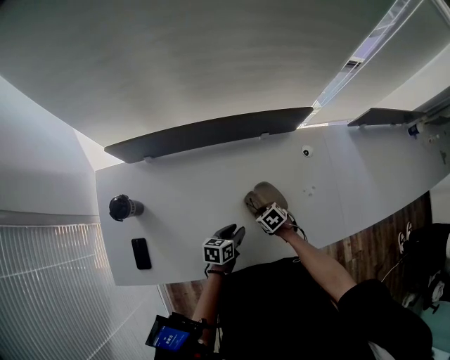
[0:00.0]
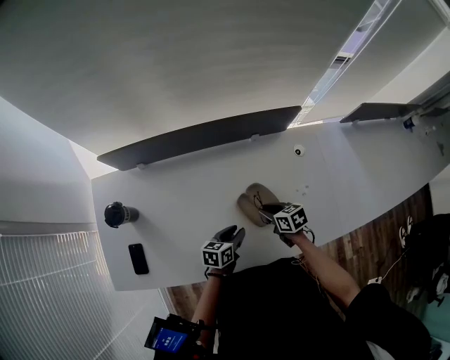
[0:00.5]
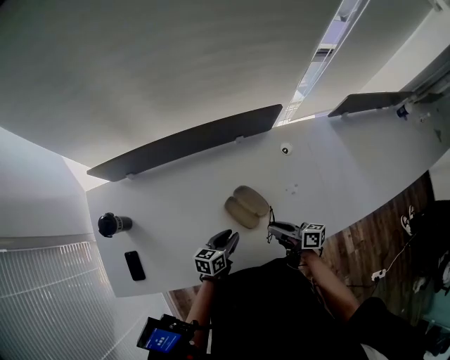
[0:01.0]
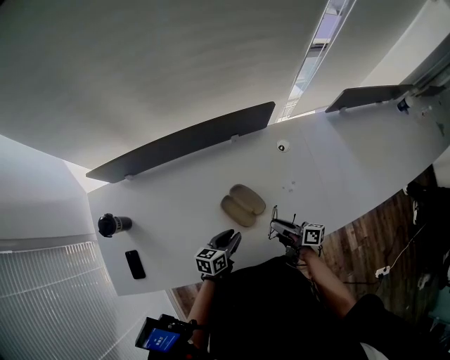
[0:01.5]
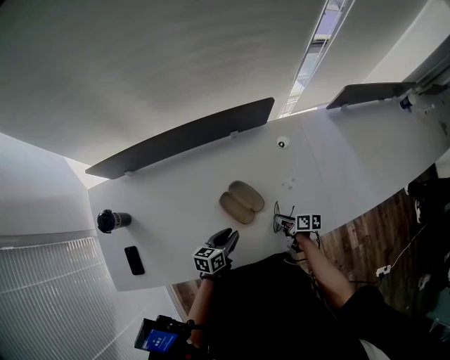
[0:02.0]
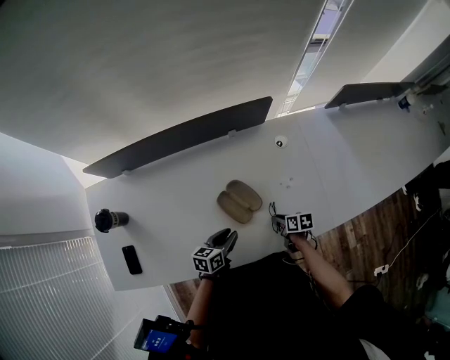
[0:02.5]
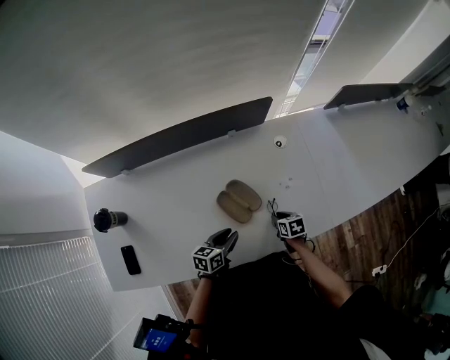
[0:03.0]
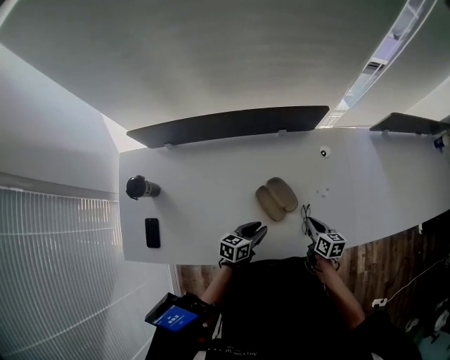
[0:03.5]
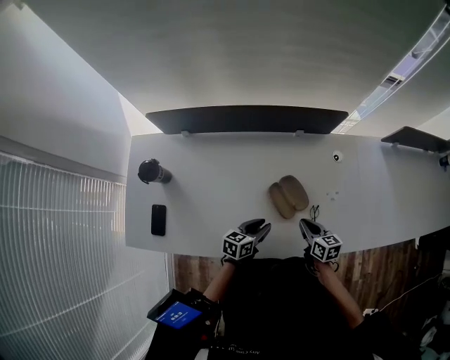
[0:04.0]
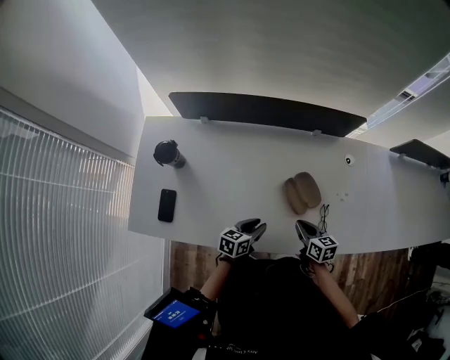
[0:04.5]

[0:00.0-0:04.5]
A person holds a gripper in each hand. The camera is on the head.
0:00.0 to 0:02.0: The left gripper moves to the right, about 5 cm. Meanwhile the right gripper goes about 20 cm to the right, and twists some 60 degrees clockwise, seen from behind.
0:02.0 to 0:04.5: The right gripper shifts approximately 20 cm to the left and upward, and twists some 40 degrees counterclockwise, seen from behind; the left gripper is displaced to the left and backward by roughly 10 cm.

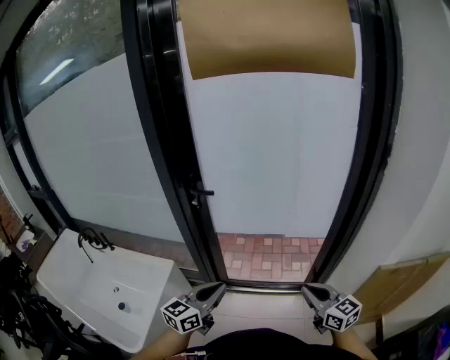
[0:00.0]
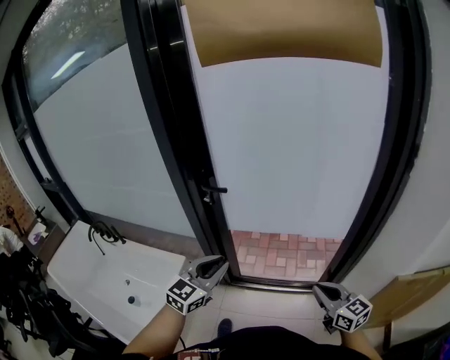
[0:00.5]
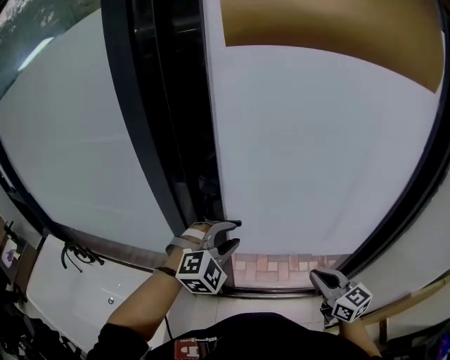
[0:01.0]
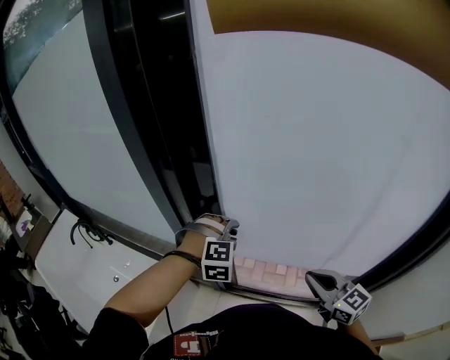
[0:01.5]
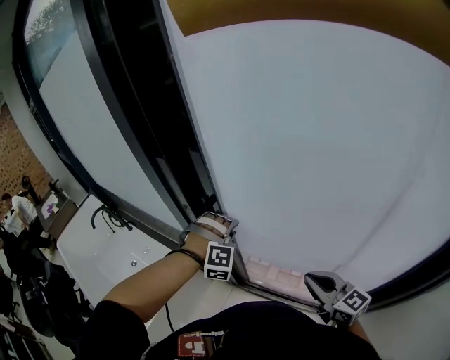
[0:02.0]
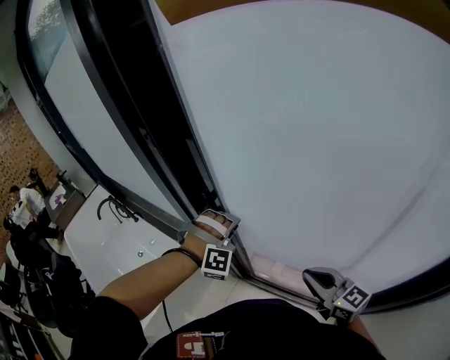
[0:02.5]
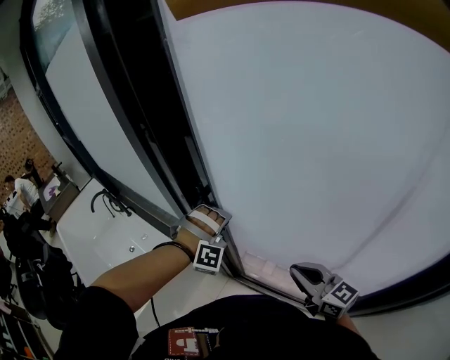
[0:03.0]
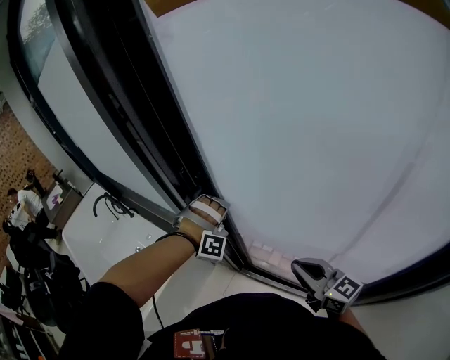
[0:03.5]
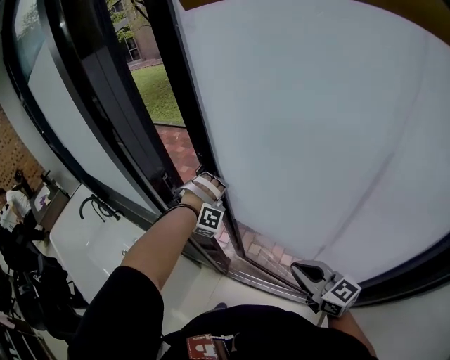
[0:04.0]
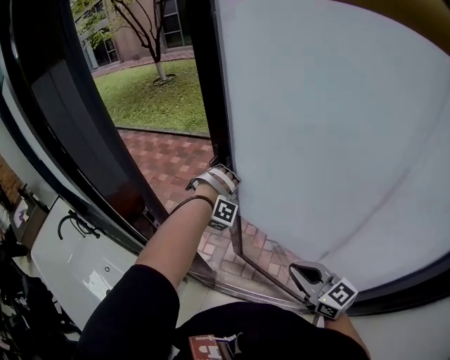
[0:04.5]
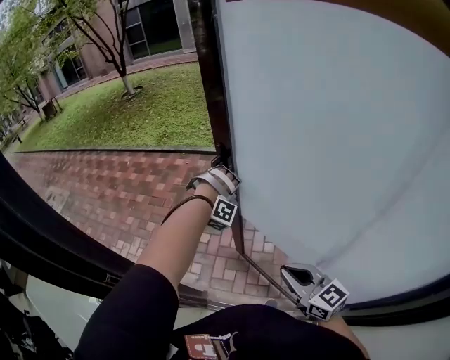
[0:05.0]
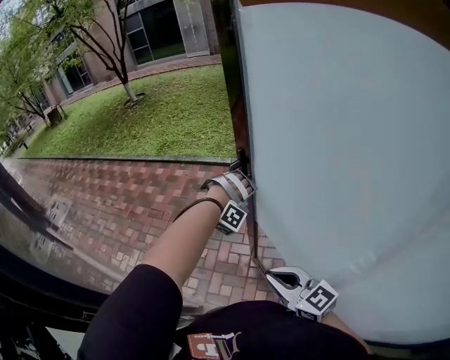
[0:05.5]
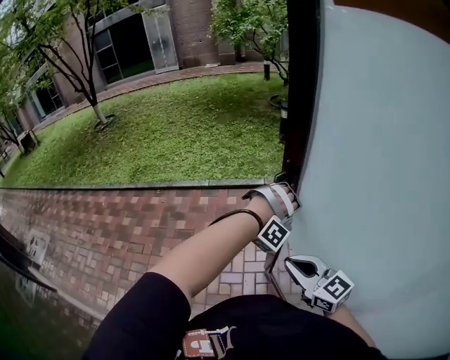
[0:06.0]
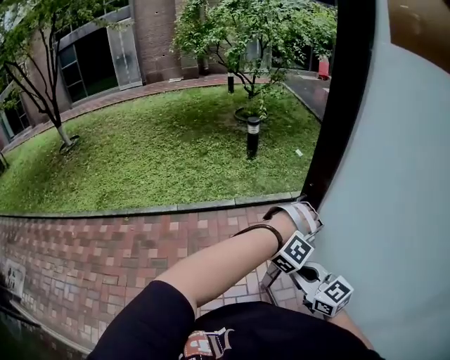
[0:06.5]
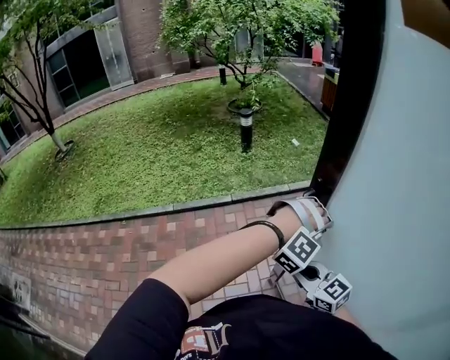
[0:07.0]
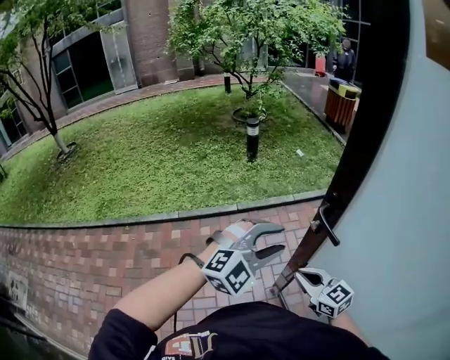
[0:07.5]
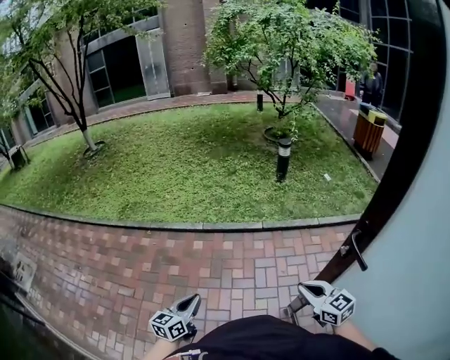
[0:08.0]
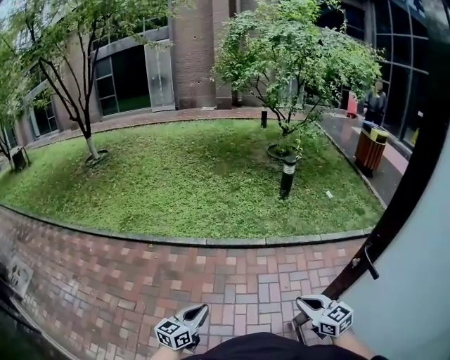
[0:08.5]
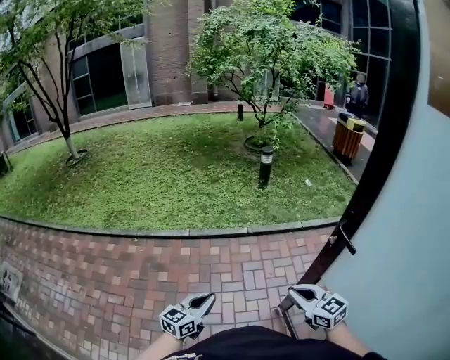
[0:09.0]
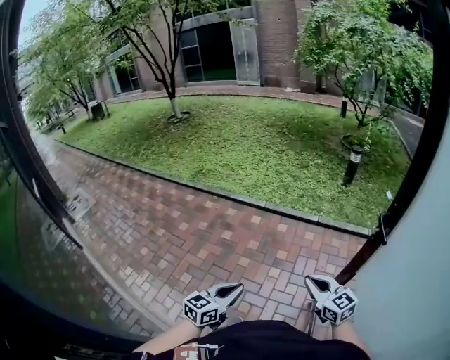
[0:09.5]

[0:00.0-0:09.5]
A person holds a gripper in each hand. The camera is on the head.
0:00.0 to 0:02.0: The left gripper ends up approximately 40 cm from where it was, rolls clockwise, seen from behind, by about 90 degrees, and opens its fingers. Meanwhile the right gripper moves roughly 30 cm, and turns by approximately 20 degrees.
0:02.0 to 0:04.0: The left gripper goes roughly 15 cm forward and to the right, and swivels about 20 degrees.
0:04.0 to 0:05.5: The left gripper is displaced to the right and forward by about 40 cm, and changes its angle by some 30 degrees; the right gripper shifts approximately 30 cm forward and to the right.
0:05.5 to 0:07.5: The left gripper changes its angle by approximately 70 degrees, and closes and opens again; the right gripper ends up roughly 40 cm from where it was, and turns by roughly 30 degrees.
0:07.5 to 0:09.5: The right gripper moves some 15 cm, and changes its angle by approximately 30 degrees. The left gripper shifts by roughly 35 cm, twists about 70 degrees counterclockwise, seen from behind, and closes its fingers.

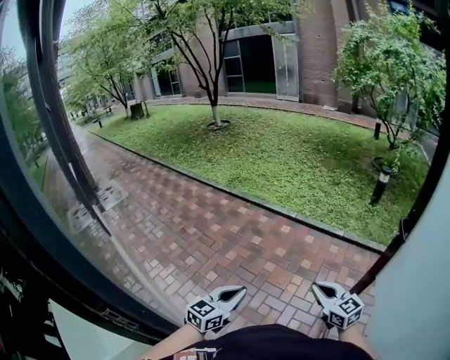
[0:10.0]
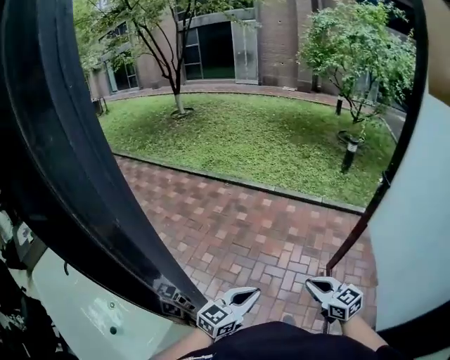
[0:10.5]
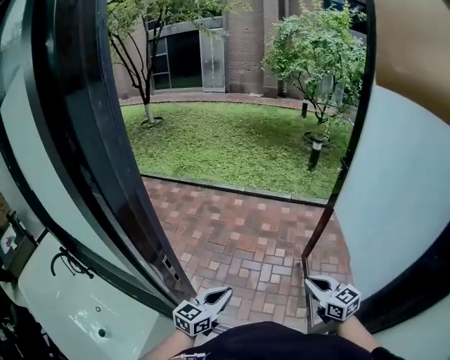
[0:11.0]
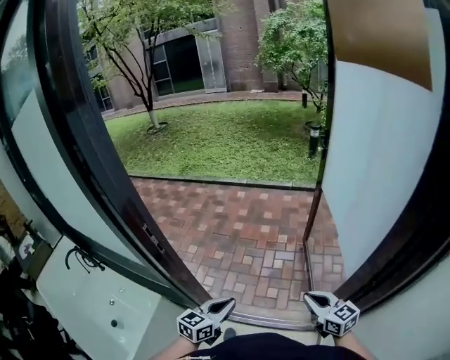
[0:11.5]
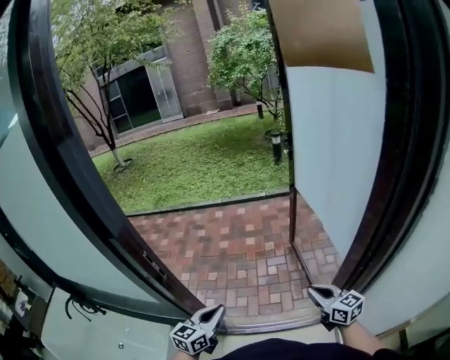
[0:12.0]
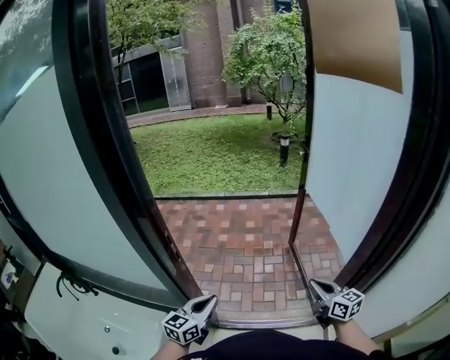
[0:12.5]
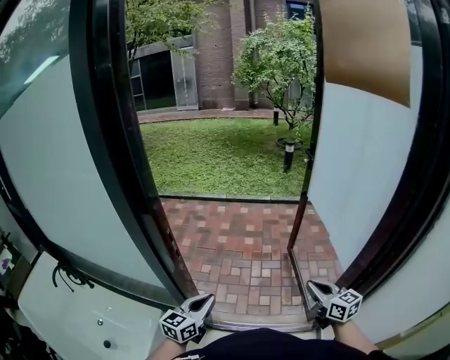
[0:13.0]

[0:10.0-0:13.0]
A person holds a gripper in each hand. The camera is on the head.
0:10.0 to 0:11.5: The two grippers travel together, backward, some 50 cm.
0:11.5 to 0:13.0: The right gripper shifts approximately 5 cm to the left; the left gripper moves to the left, some 15 cm.

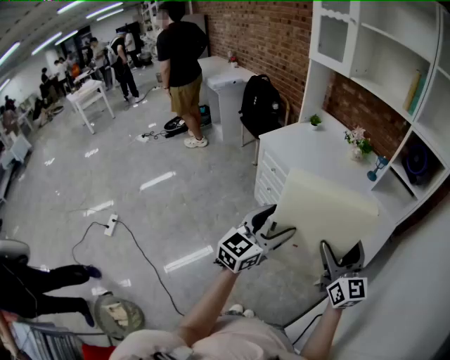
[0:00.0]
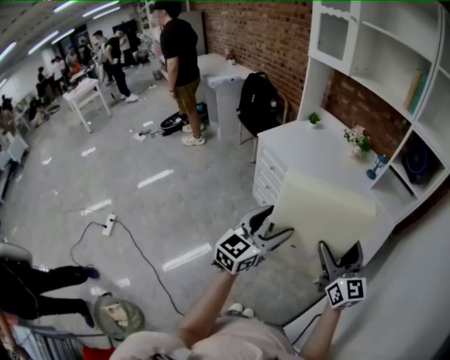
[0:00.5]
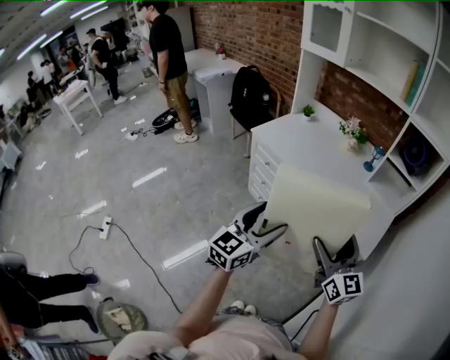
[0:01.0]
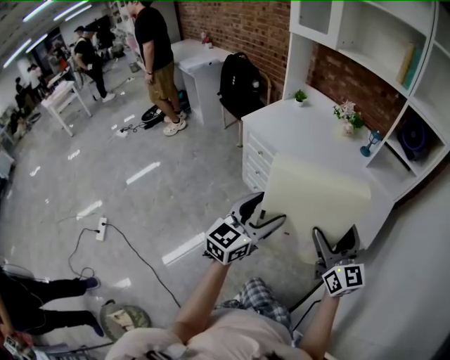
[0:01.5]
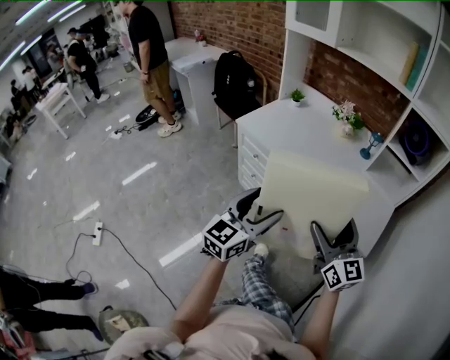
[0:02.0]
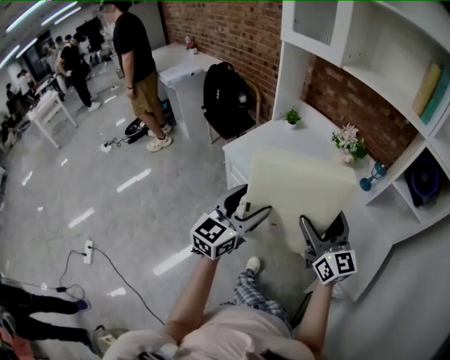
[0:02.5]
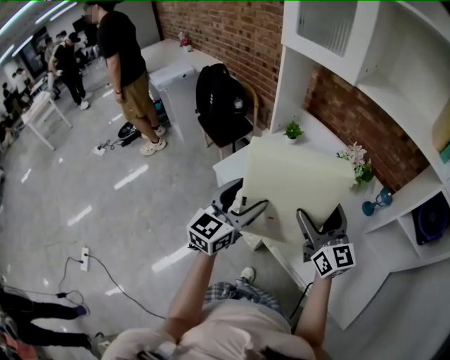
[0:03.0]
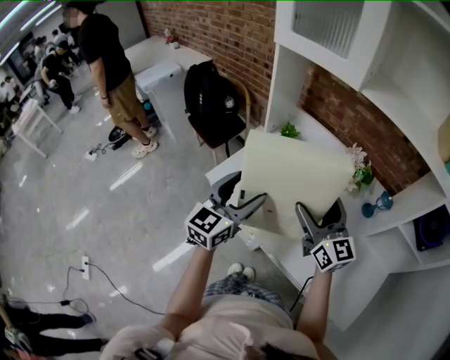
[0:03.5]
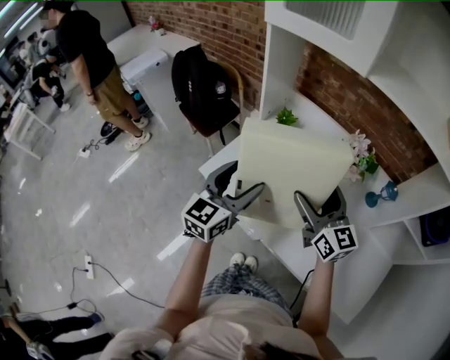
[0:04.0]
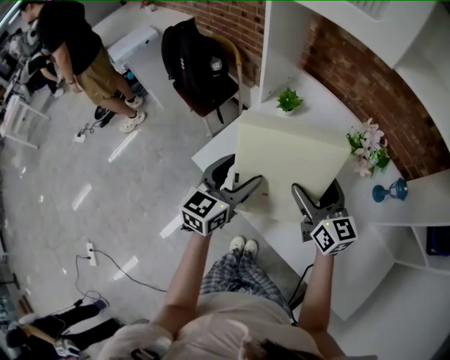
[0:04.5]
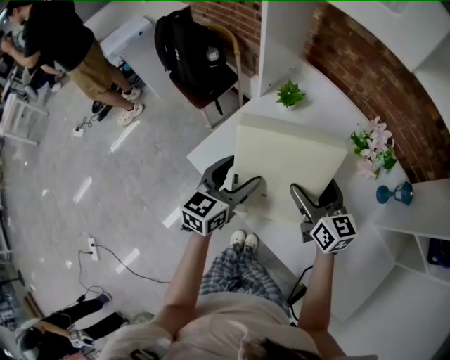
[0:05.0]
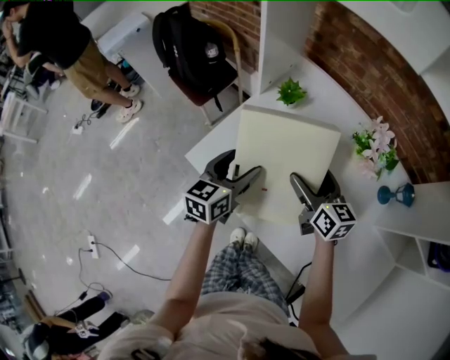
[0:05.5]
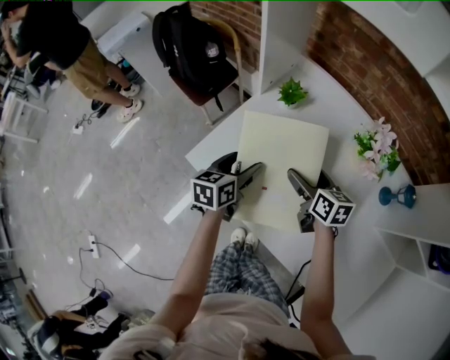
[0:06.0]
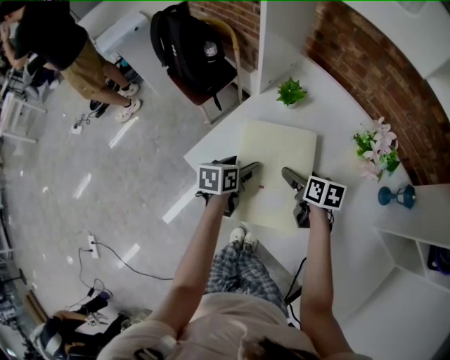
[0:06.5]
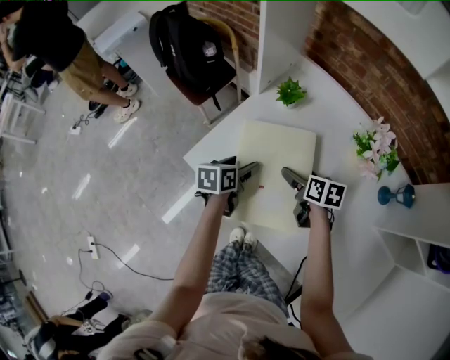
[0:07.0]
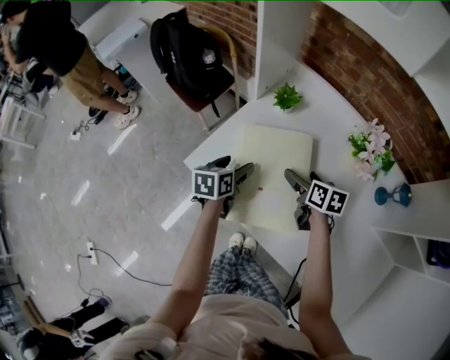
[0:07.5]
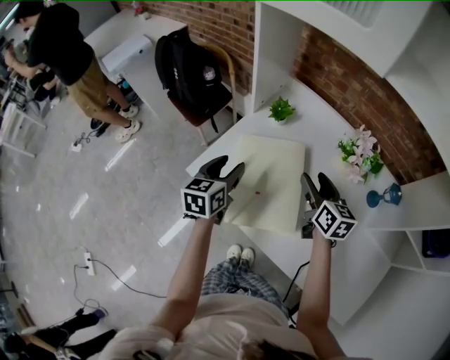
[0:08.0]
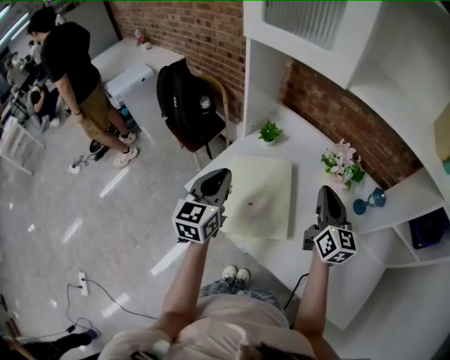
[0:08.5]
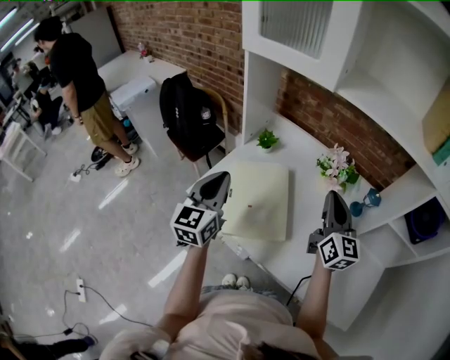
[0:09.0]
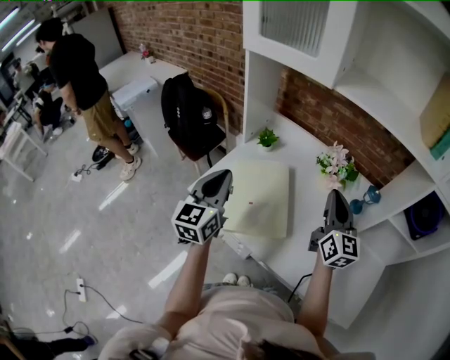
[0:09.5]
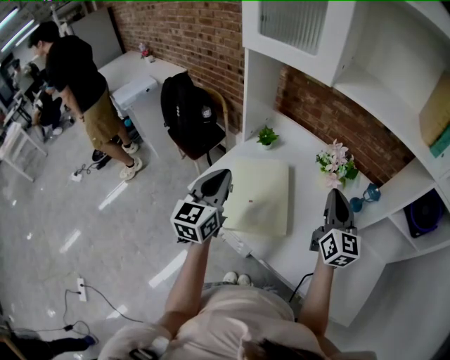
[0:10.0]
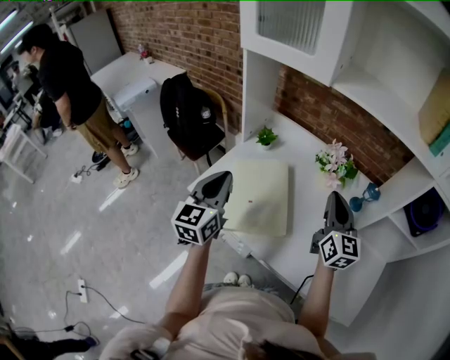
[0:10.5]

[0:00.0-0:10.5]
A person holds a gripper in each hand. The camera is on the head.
0:00.0 to 0:02.0: Both grippers move forward, some 10 cm.
0:02.0 to 0:04.0: The pair of grippers is taken forward, approximately 50 cm.
0:04.0 to 0:06.5: The grippers both shift downward and forward by about 30 cm. The left gripper angles its fingers downward, by approximately 30 degrees; the right gripper tips its fingers downward by some 40 degrees.
0:06.5 to 0:08.5: The two grippers go roughly 25 cm upward. The right gripper points its fingers some 40 degrees further upward, and closes up. Meanwhile the left gripper points its fingers some 30 degrees further upward, and closes up.
0:08.5 to 0:10.5: Both grippers travel together backward, roughly 5 cm.
